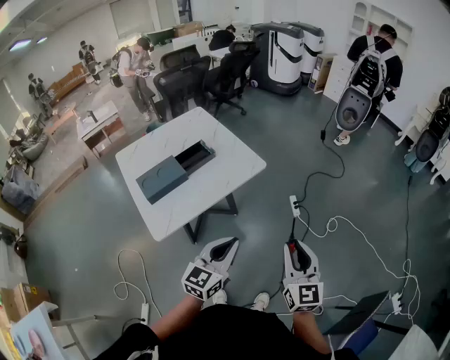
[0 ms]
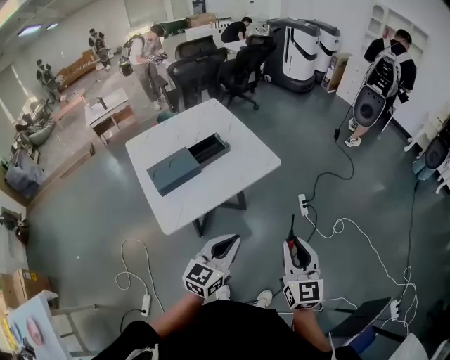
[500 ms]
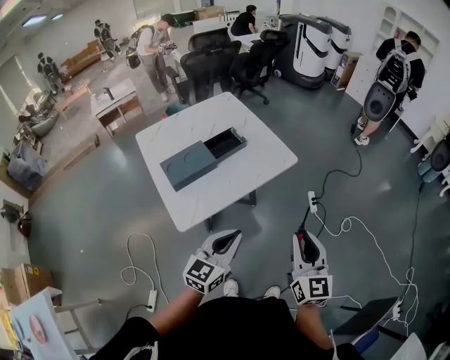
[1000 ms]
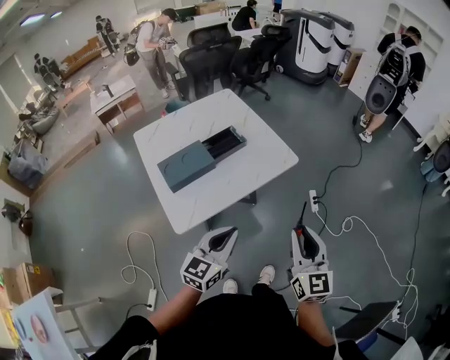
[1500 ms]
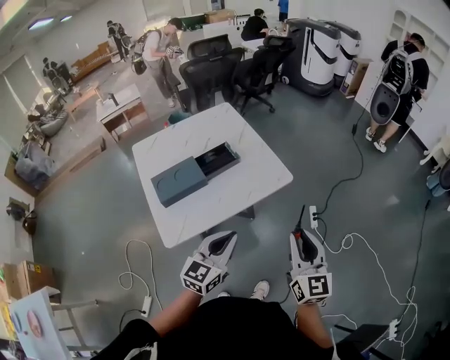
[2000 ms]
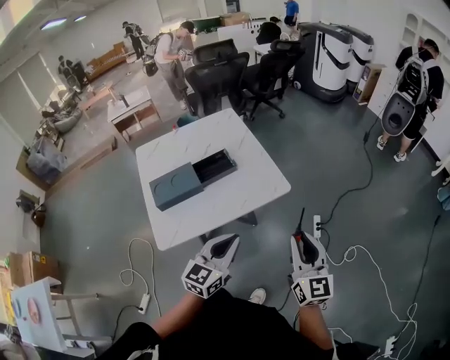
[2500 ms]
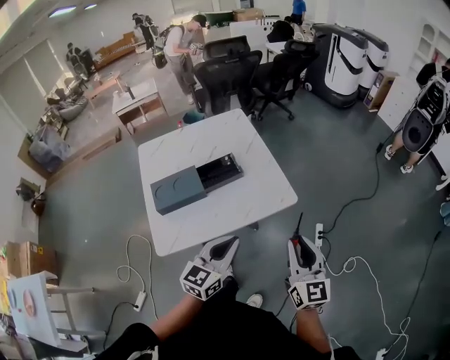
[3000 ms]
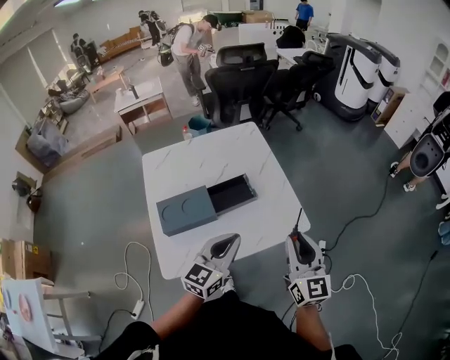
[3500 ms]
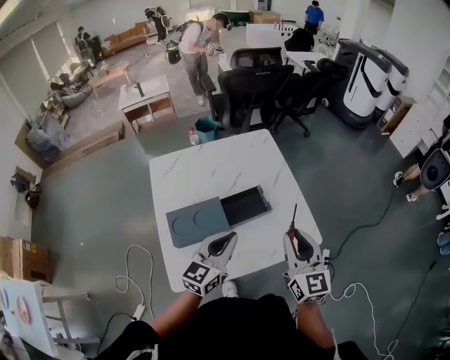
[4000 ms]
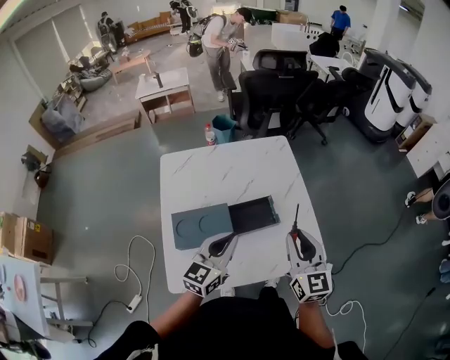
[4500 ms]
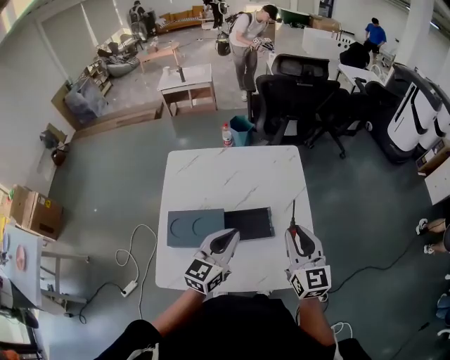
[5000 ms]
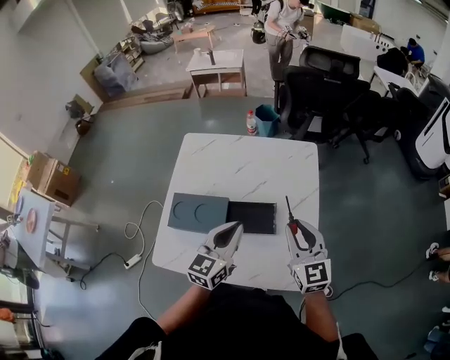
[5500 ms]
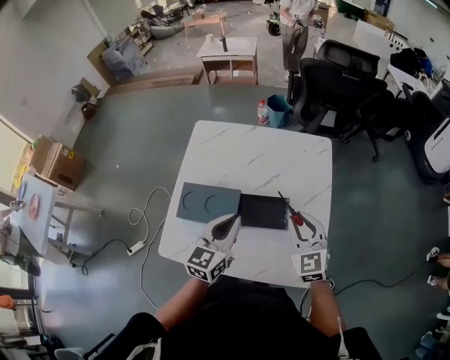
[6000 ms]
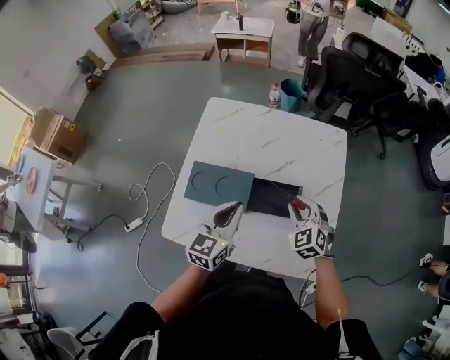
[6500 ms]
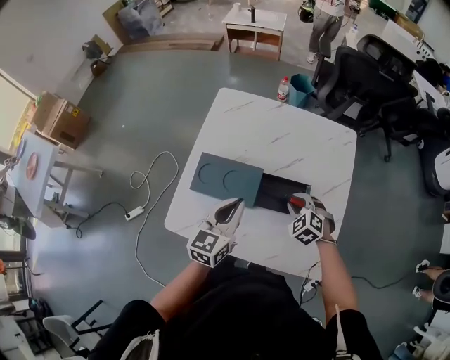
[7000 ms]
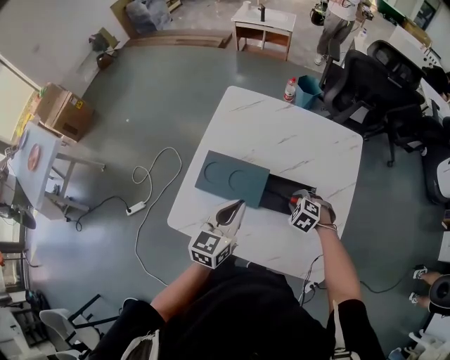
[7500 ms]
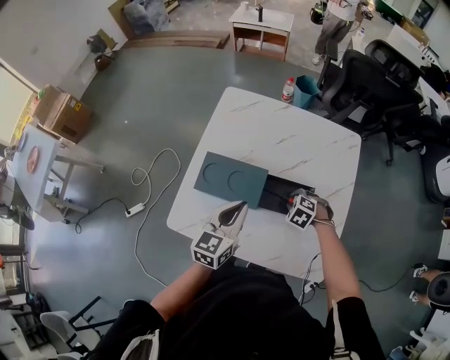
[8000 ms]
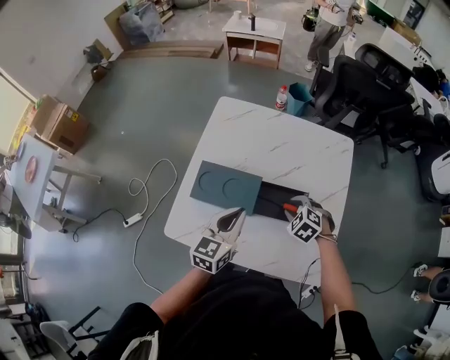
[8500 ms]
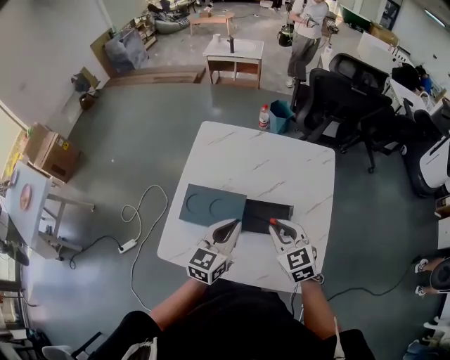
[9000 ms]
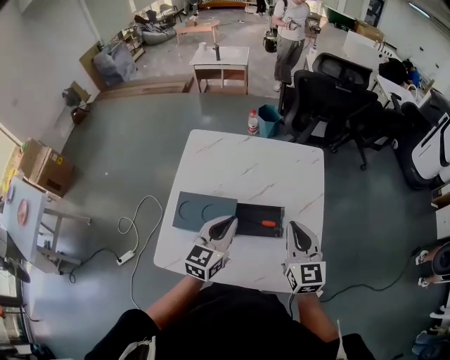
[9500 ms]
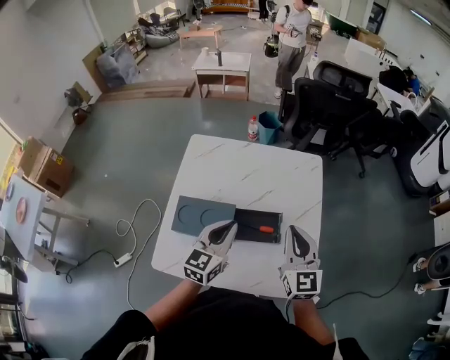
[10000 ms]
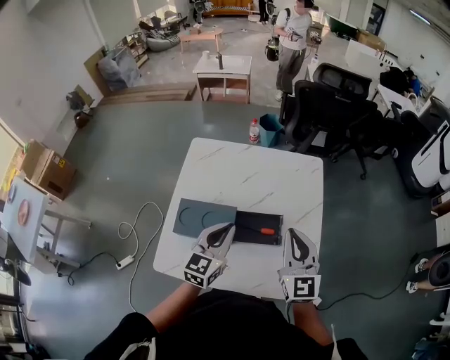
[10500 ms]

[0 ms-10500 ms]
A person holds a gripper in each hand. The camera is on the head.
0 ms to 2000 ms: The two grippers go roughly 15 cm forward and to the left.
2000 ms to 4000 ms: The grippers both shift forward and to the left by roughly 30 cm.
4000 ms to 6500 ms: The left gripper changes place by some 10 cm, and rotates approximately 40 degrees, while the right gripper changes place by approximately 25 cm, and angles its fingers downward, by some 30 degrees.
6500 ms to 8500 ms: The right gripper goes about 10 cm downward, and rotates about 30 degrees.
8500 ms to 10500 ms: The left gripper travels upward by some 5 cm, while the right gripper travels upward by approximately 25 cm, points its fingers about 60 degrees further upward, and closes its fingers.

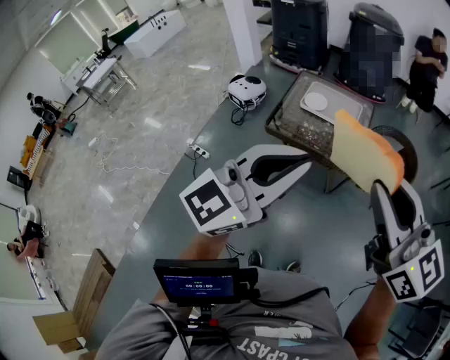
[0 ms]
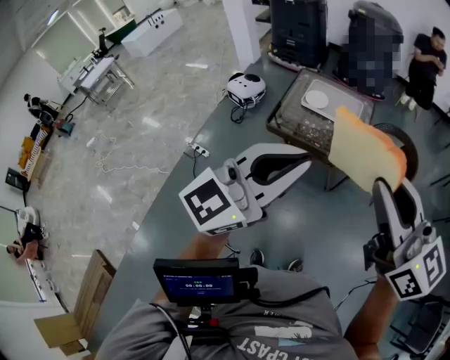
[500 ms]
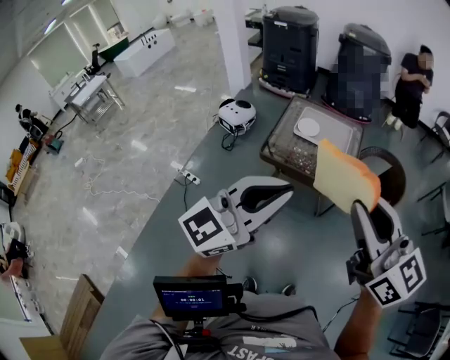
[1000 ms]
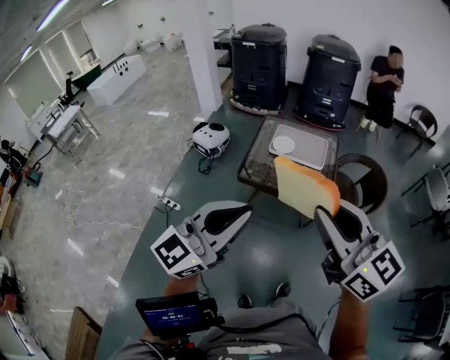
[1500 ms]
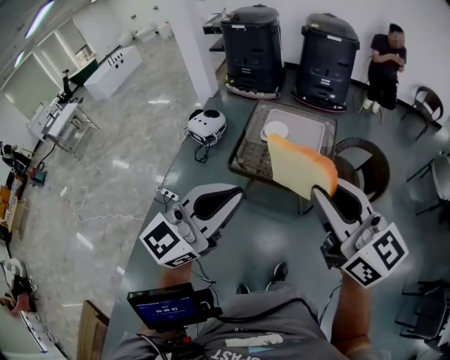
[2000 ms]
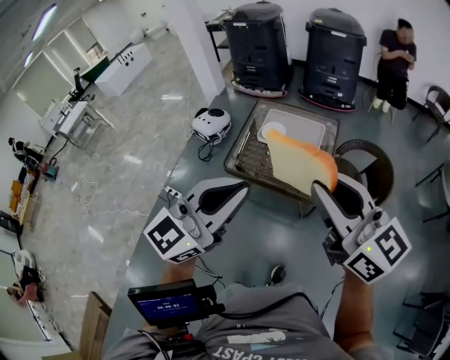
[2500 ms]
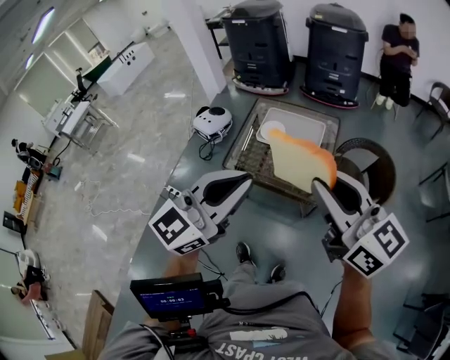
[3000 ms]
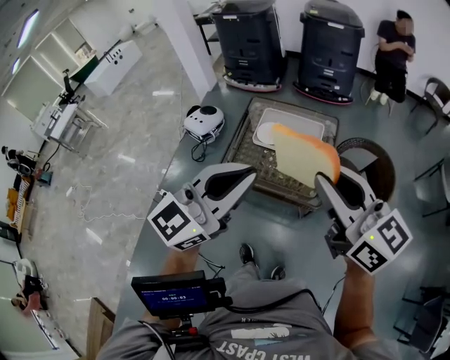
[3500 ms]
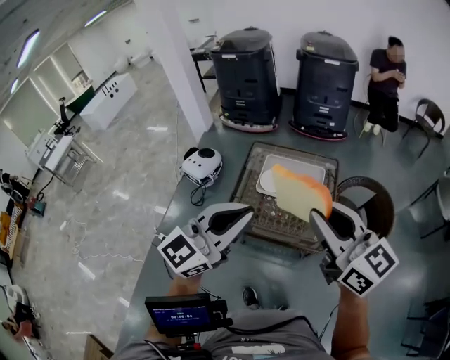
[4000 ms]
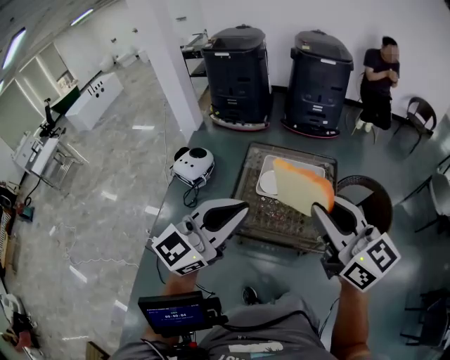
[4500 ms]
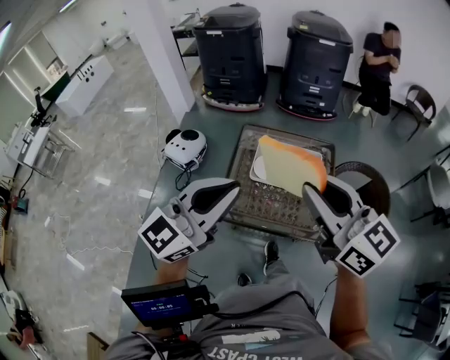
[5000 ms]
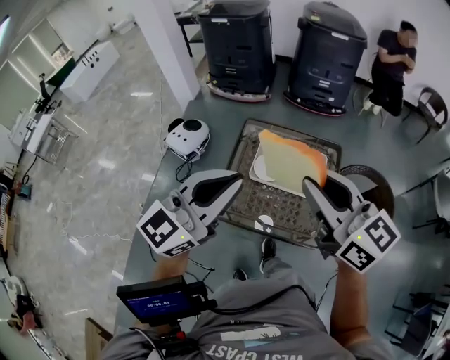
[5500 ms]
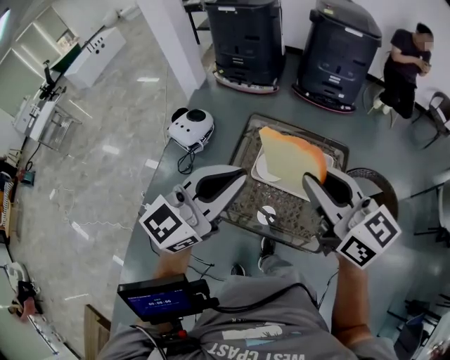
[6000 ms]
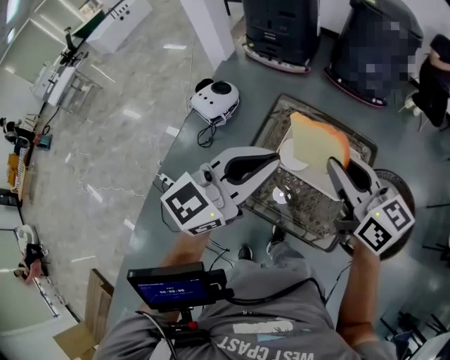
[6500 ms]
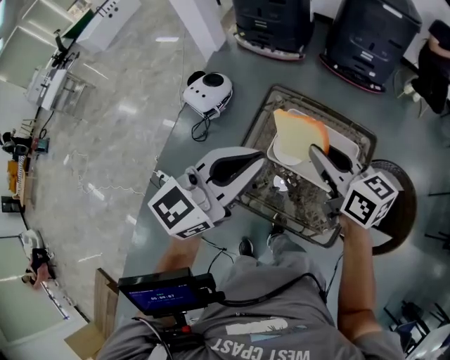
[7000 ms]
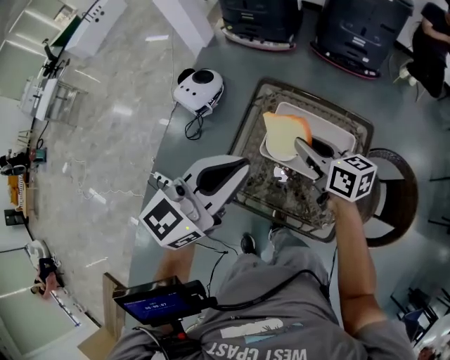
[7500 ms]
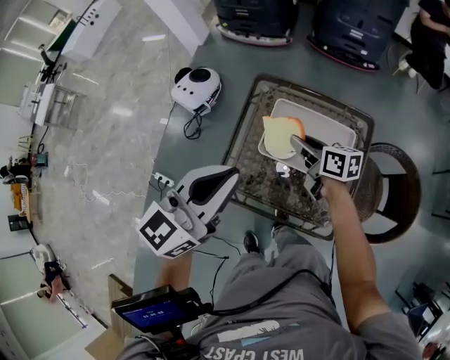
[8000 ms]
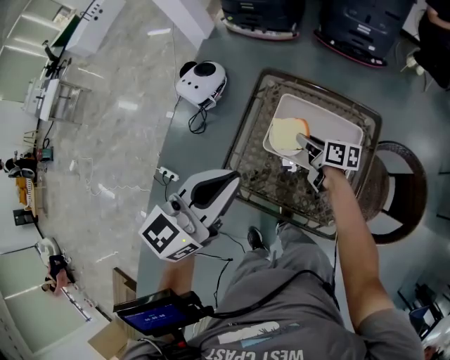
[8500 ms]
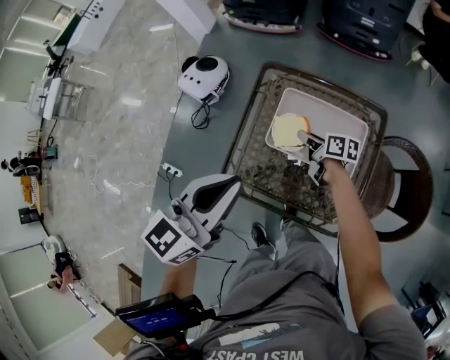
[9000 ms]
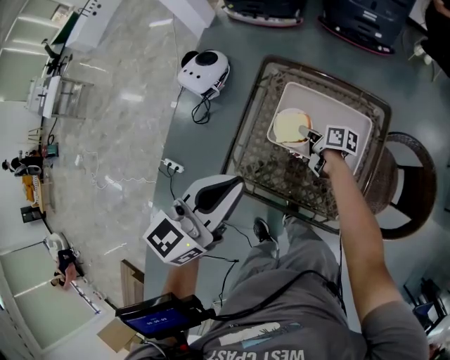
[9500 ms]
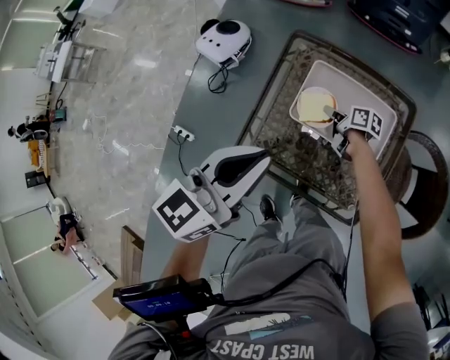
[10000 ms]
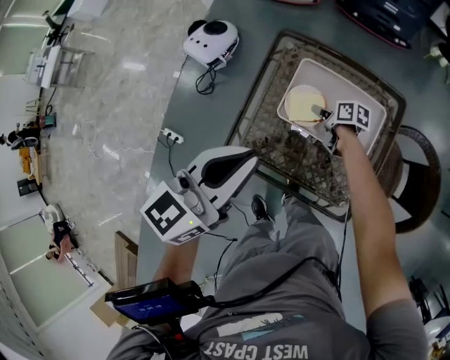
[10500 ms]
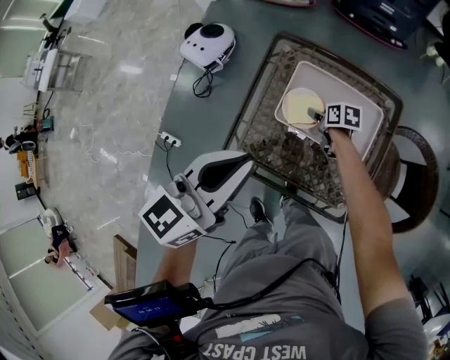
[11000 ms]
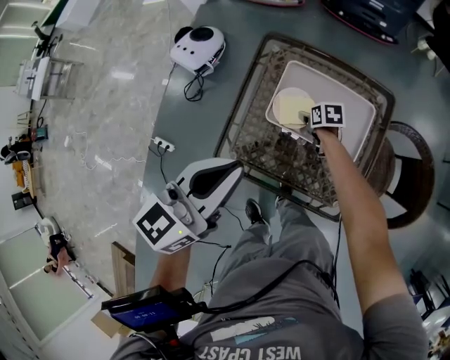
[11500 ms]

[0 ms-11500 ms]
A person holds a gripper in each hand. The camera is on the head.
0 ms to 2000 ms: The two grippers go about 10 cm forward and to the left.
2000 ms to 4000 ms: Both grippers travel together forward, some 25 cm.
4000 ms to 6000 ms: The grippers both shift forward by roughly 20 cm.
6000 ms to 7500 ms: The left gripper is displaced downward and forward by about 10 cm. Meanwhile the right gripper heads downward and forward, covering approximately 25 cm, and rotates approximately 30 degrees.
7500 ms to 9500 ms: The right gripper travels downward by about 25 cm, and turns by some 40 degrees, while the left gripper travels downward by roughly 5 cm.
9500 ms to 11500 ms: The right gripper travels downward by about 10 cm, tips its fingers downward by roughly 30 degrees, and opens its fingers.

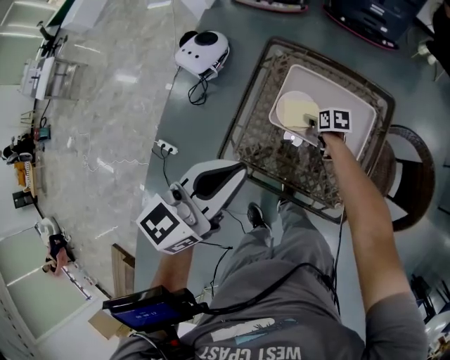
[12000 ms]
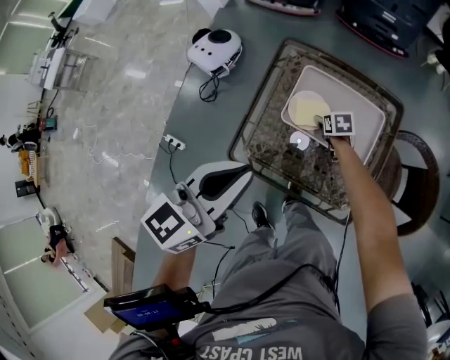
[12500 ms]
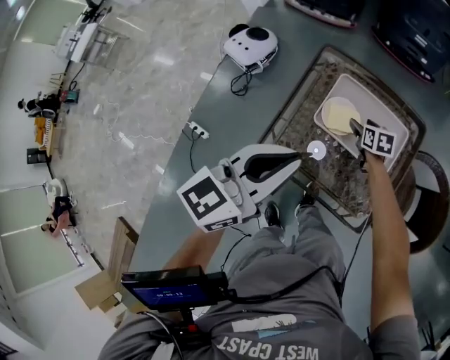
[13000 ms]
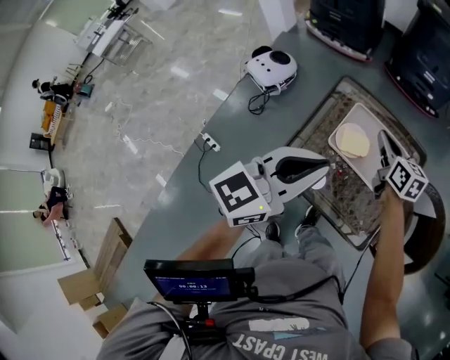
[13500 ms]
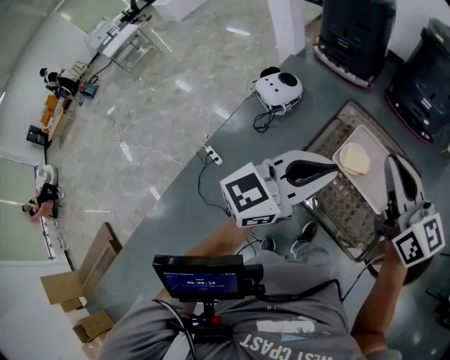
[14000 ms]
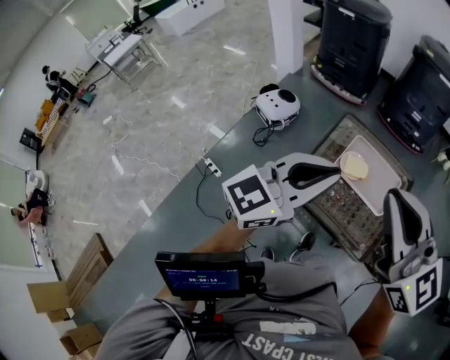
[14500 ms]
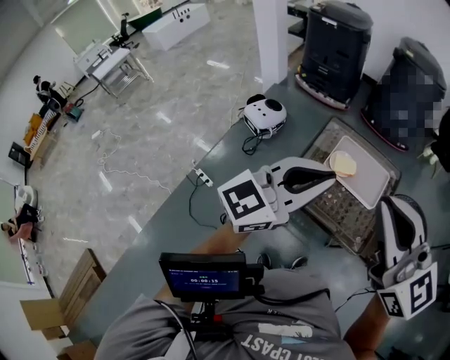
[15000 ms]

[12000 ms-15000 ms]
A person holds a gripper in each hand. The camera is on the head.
12000 ms to 13500 ms: The right gripper is displaced upward by roughly 30 cm, points its fingers about 30 degrees further upward, and closes up. Meanwhile the left gripper heads upward, covering some 5 cm.
13500 ms to 15000 ms: The right gripper heads backward and upward, covering roughly 50 cm, and turns by some 40 degrees. Meanwhile the left gripper moves backward and upward, about 20 cm.

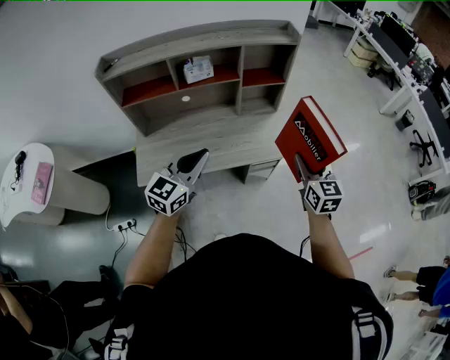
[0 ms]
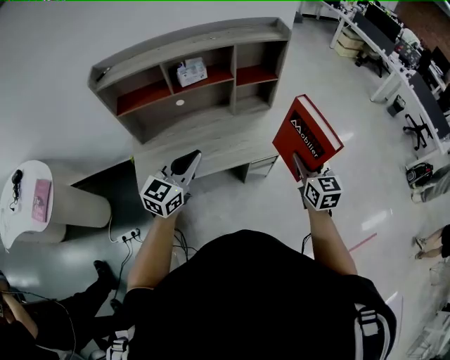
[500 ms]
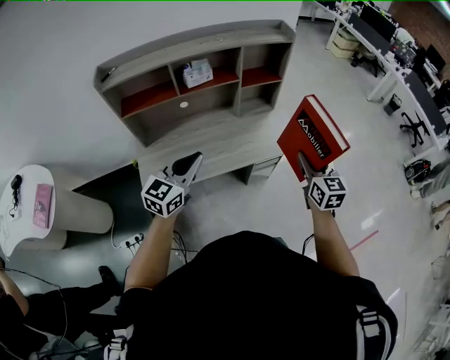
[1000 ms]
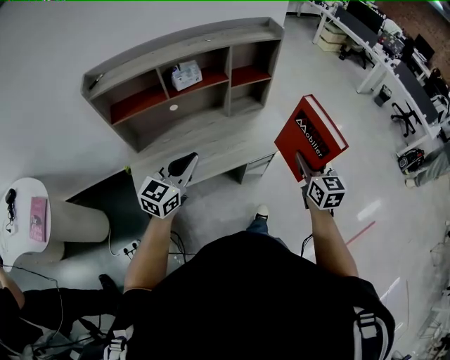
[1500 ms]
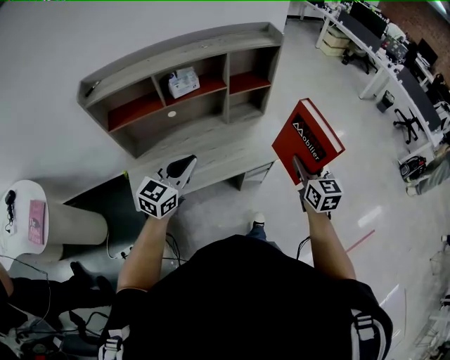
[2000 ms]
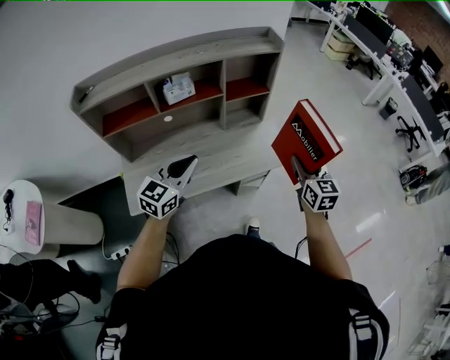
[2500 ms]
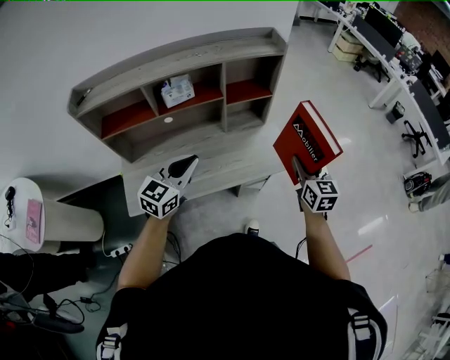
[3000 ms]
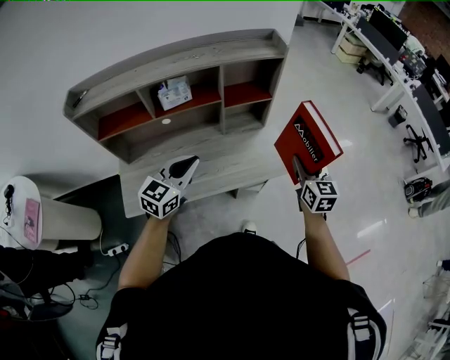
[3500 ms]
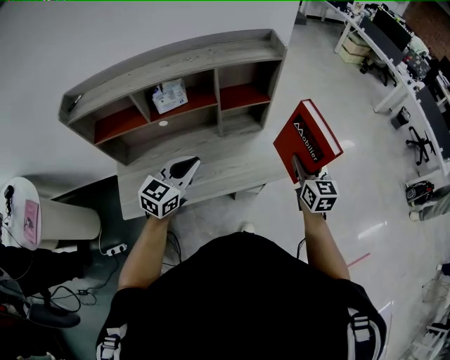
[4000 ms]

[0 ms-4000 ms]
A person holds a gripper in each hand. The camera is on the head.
0 ms to 2000 ms: The left gripper goes some 5 cm to the left.
2000 ms to 4000 ms: The left gripper travels forward and to the right by about 15 cm, while the right gripper shifts roughly 20 cm forward.
